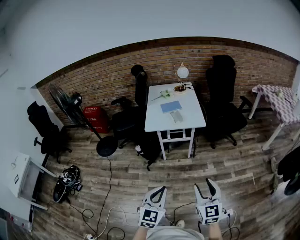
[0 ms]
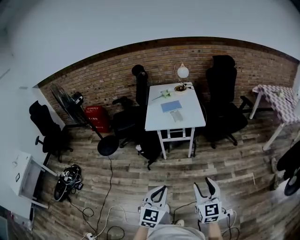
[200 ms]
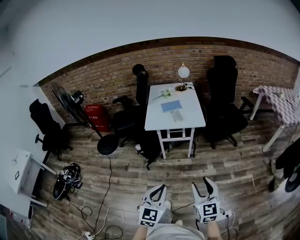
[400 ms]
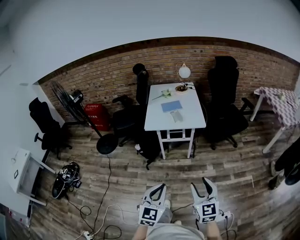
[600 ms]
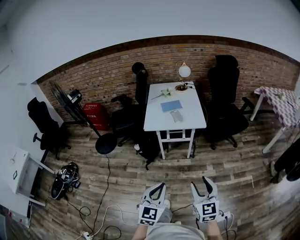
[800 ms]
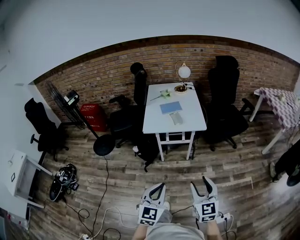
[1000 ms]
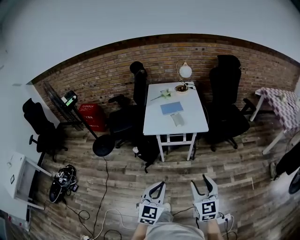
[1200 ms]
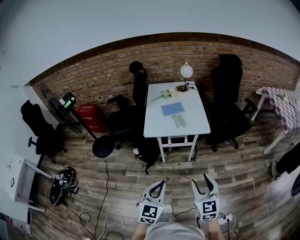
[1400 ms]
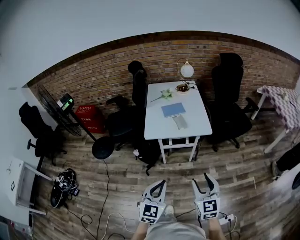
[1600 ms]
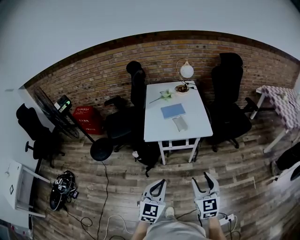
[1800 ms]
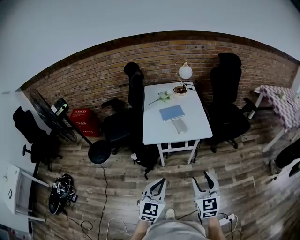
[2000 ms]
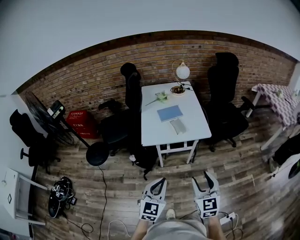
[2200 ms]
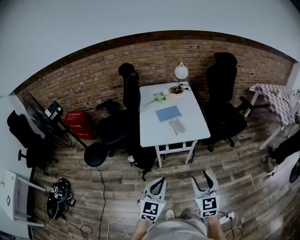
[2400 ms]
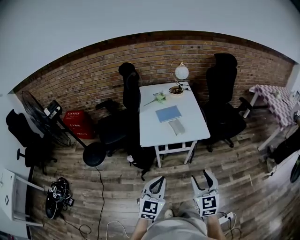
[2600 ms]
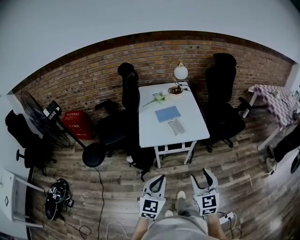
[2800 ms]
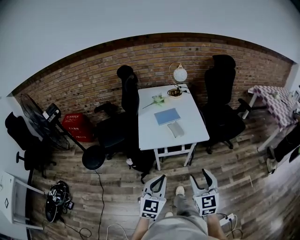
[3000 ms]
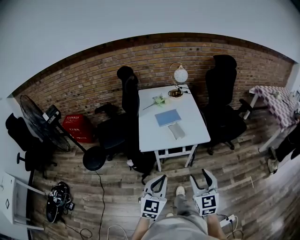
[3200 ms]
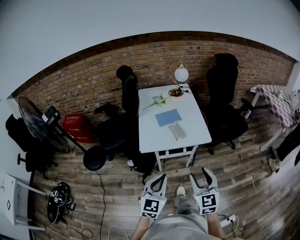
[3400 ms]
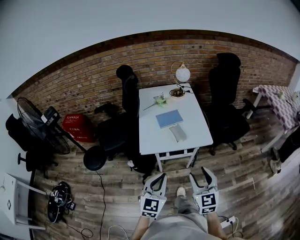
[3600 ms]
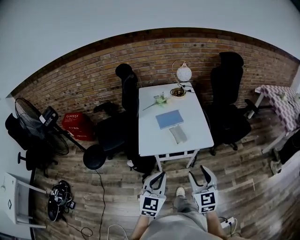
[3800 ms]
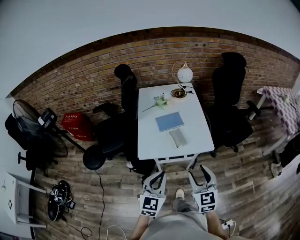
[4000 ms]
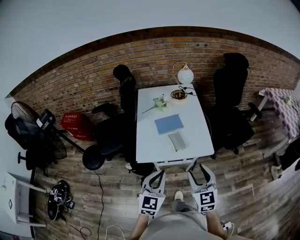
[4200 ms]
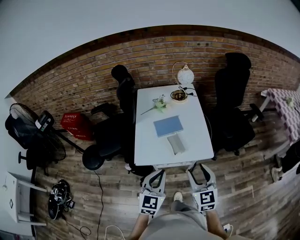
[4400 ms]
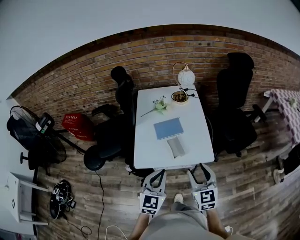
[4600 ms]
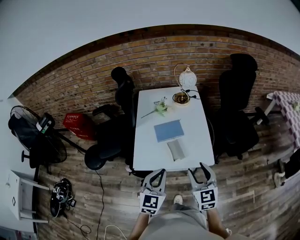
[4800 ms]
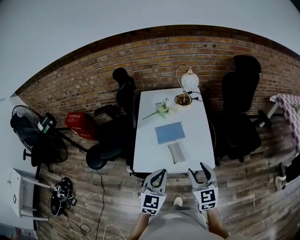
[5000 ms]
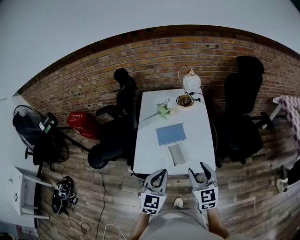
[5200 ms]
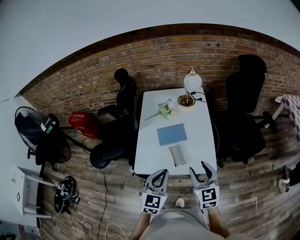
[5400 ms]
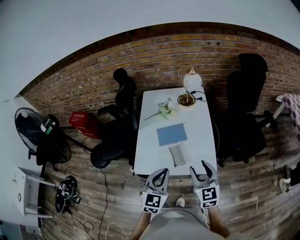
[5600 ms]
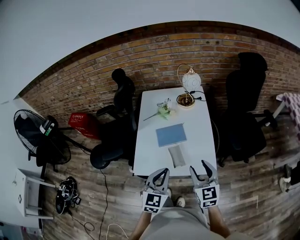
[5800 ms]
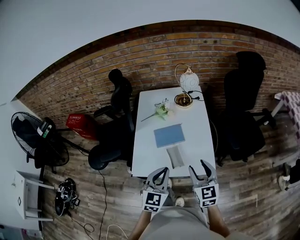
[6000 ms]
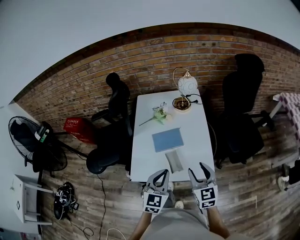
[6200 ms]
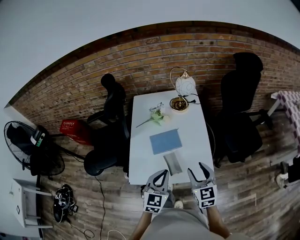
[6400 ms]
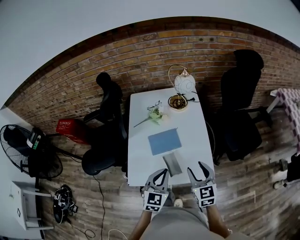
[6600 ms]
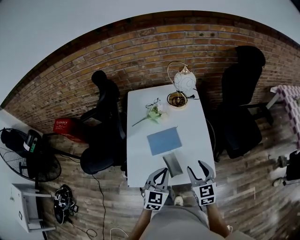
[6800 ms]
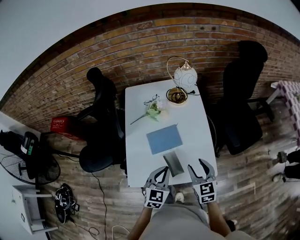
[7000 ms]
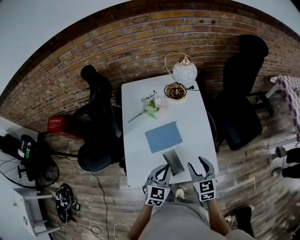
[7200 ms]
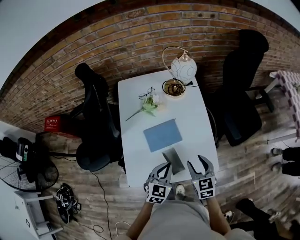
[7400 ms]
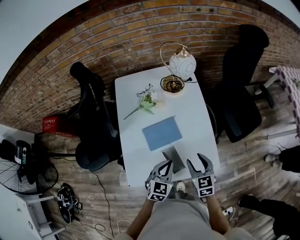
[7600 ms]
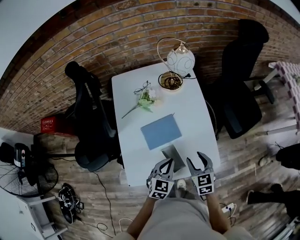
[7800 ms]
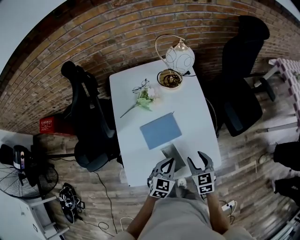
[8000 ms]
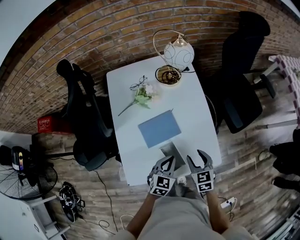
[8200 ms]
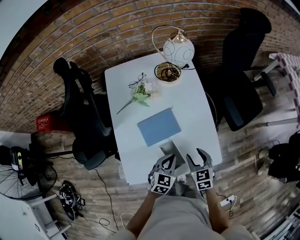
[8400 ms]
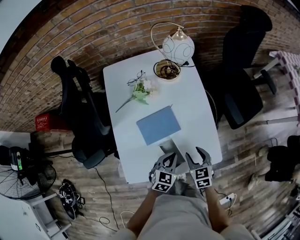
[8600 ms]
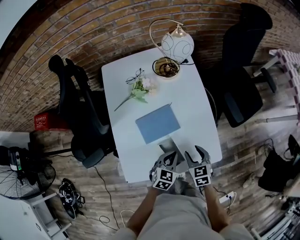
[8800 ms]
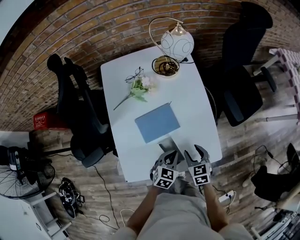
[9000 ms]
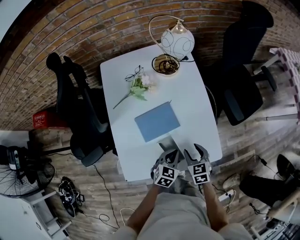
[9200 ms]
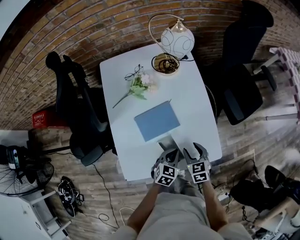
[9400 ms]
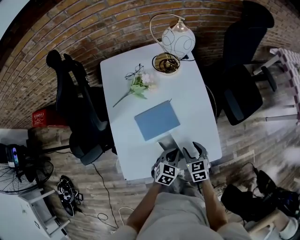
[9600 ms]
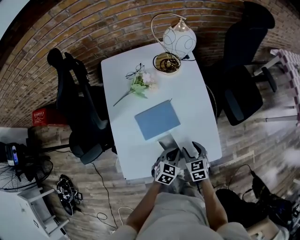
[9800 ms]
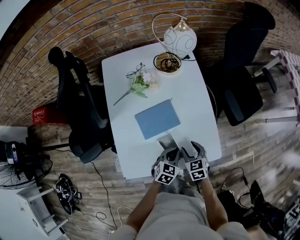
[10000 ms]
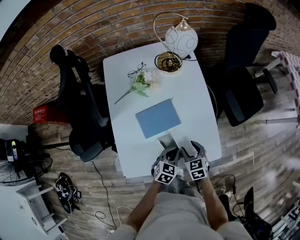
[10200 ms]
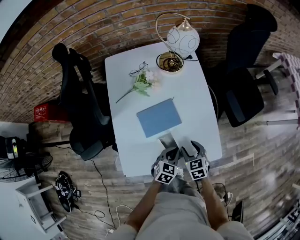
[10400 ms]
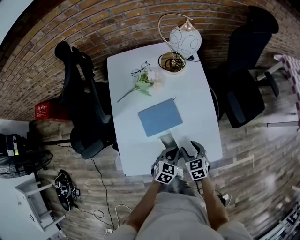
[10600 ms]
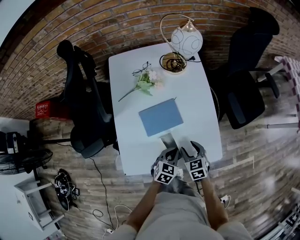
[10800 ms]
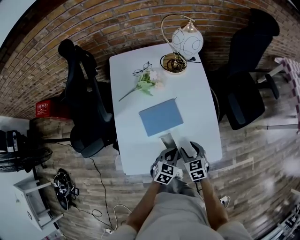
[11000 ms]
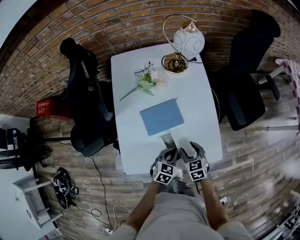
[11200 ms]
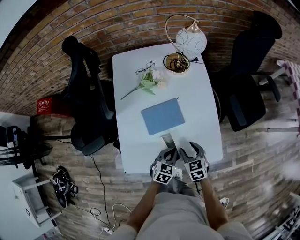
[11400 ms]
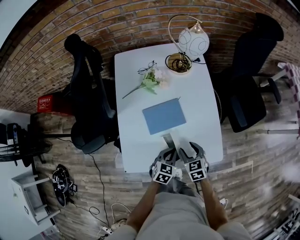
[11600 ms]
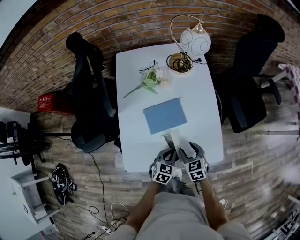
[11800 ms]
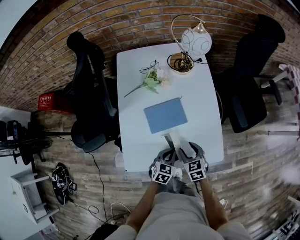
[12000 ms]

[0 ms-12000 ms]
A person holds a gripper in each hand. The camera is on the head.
0 ms to 1600 ms: Both grippers move forward, roughly 20 cm.
1600 ms to 3000 ms: Both grippers travel together forward, roughly 10 cm.
3000 ms to 4400 ms: Both grippers travel together forward, about 20 cm.
4400 ms to 6000 ms: The left gripper travels forward and to the right by roughly 15 cm, while the right gripper goes about 15 cm forward.
6000 ms to 7600 ms: Both grippers move downward and forward, about 20 cm. The right gripper changes its angle by about 20 degrees. Meanwhile the left gripper swivels roughly 20 degrees.
7600 ms to 9000 ms: The two grippers go approximately 10 cm downward.
9000 ms to 12000 ms: The grippers move only a little.

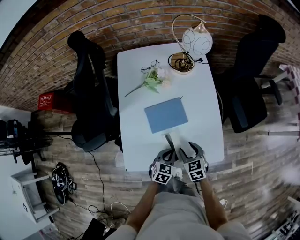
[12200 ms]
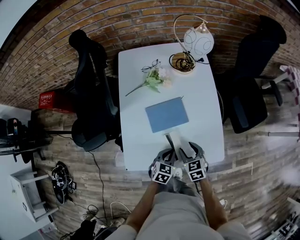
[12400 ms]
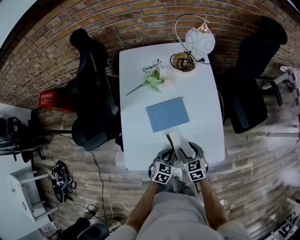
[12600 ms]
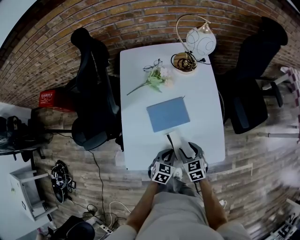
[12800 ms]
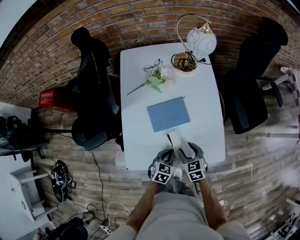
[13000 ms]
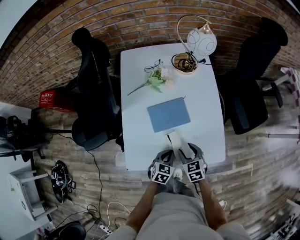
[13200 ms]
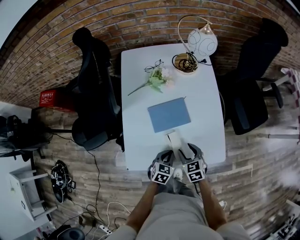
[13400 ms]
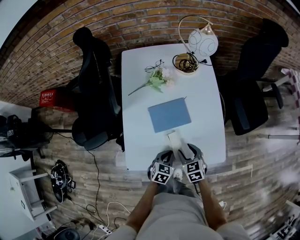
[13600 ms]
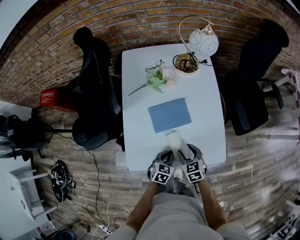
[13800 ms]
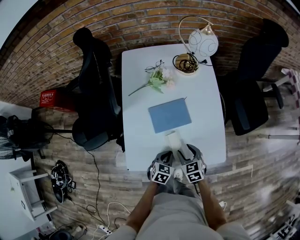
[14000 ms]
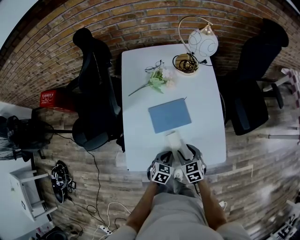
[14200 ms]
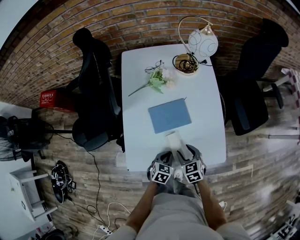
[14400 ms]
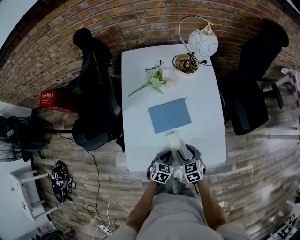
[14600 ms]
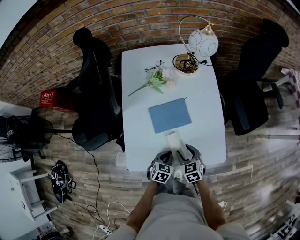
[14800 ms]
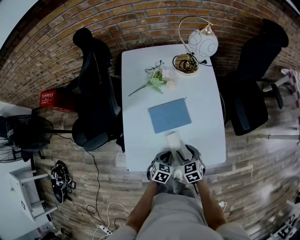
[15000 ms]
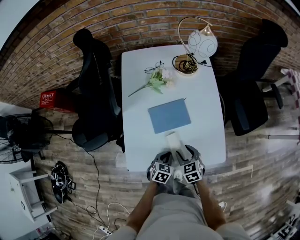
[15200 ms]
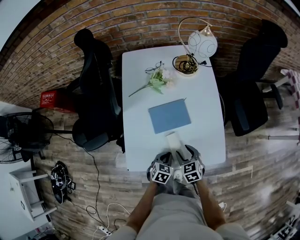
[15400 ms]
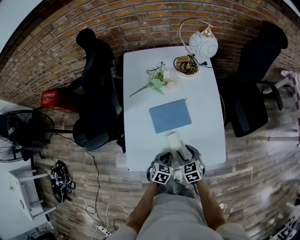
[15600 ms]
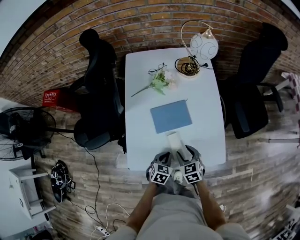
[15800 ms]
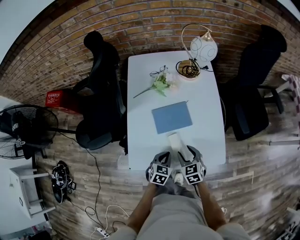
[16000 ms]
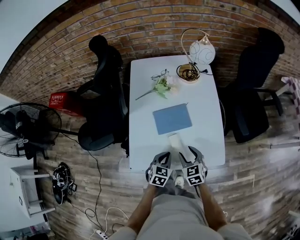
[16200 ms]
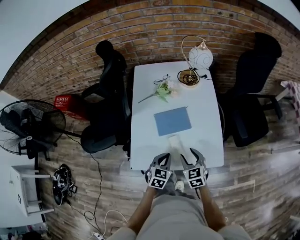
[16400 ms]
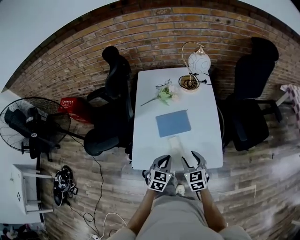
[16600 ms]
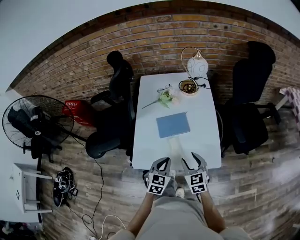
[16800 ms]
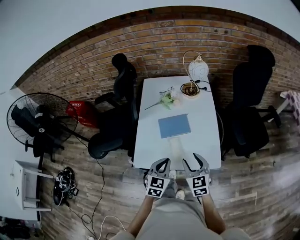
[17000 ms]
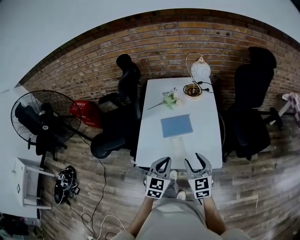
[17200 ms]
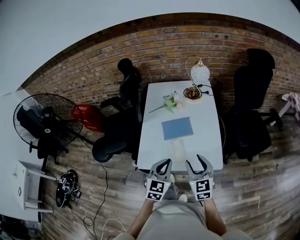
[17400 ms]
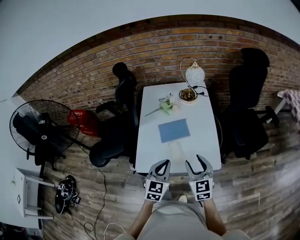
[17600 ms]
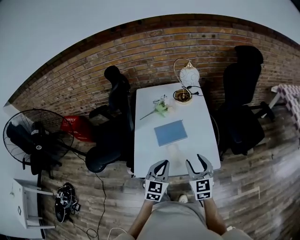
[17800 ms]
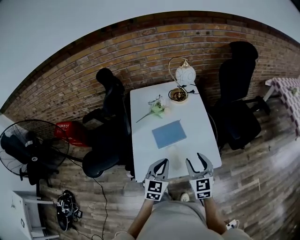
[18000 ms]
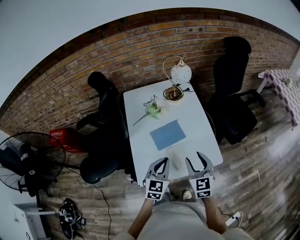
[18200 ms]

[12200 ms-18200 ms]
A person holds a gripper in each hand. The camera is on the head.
12200 ms to 13800 ms: The grippers stay close to where they were, moving slightly.
13800 ms to 15200 ms: Both grippers stay put.
15200 ms to 16600 ms: The two grippers go about 10 cm upward.
16600 ms to 18200 ms: Both grippers move upward, some 10 cm. The right gripper rotates approximately 20 degrees.

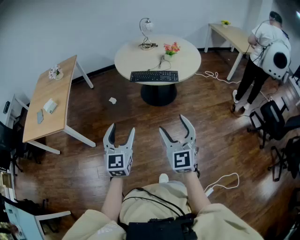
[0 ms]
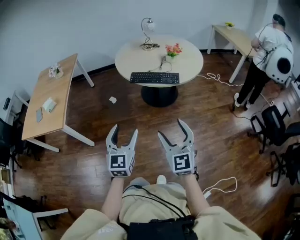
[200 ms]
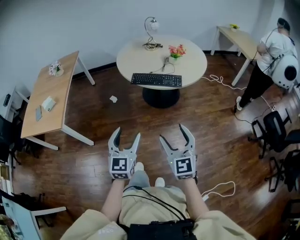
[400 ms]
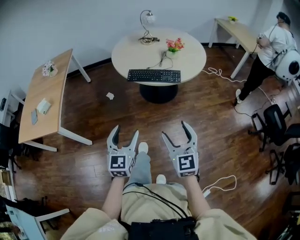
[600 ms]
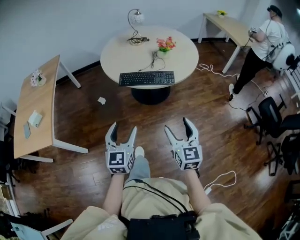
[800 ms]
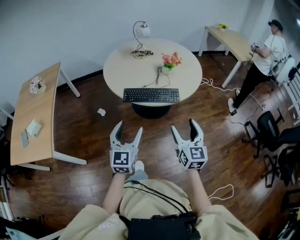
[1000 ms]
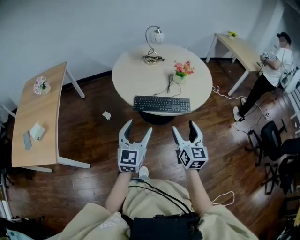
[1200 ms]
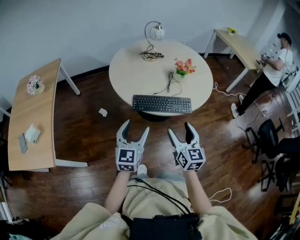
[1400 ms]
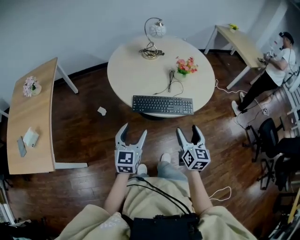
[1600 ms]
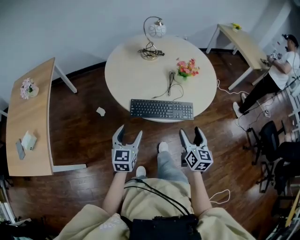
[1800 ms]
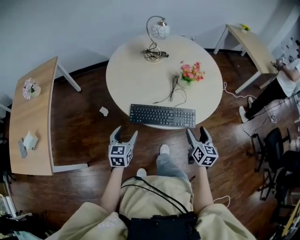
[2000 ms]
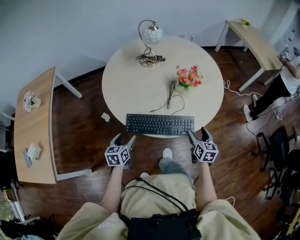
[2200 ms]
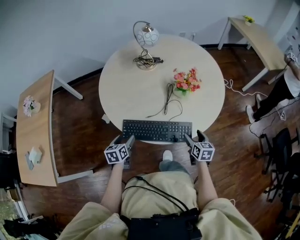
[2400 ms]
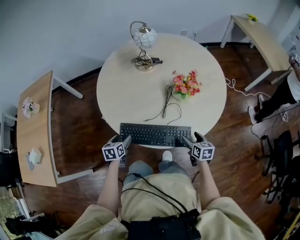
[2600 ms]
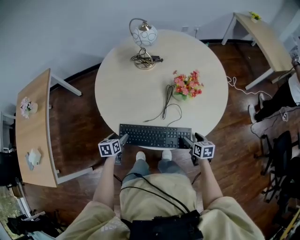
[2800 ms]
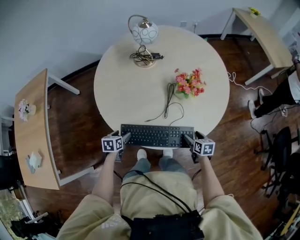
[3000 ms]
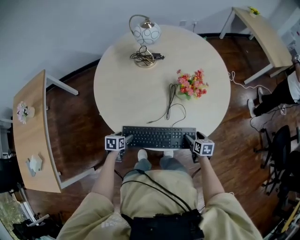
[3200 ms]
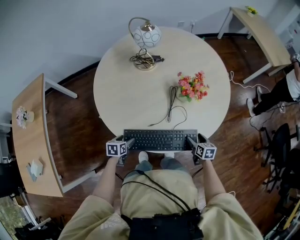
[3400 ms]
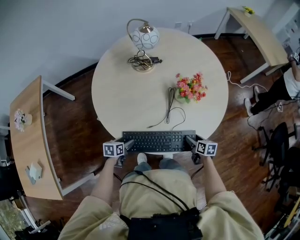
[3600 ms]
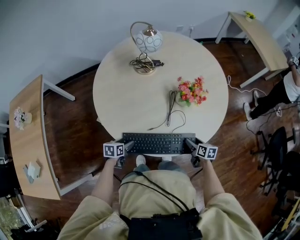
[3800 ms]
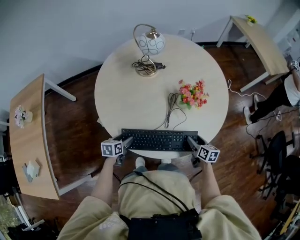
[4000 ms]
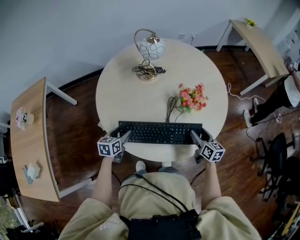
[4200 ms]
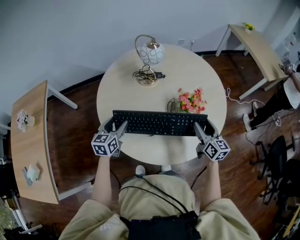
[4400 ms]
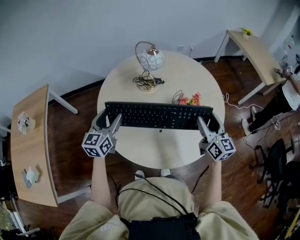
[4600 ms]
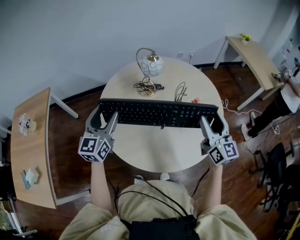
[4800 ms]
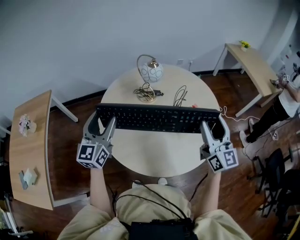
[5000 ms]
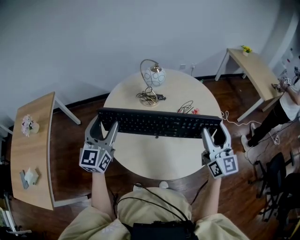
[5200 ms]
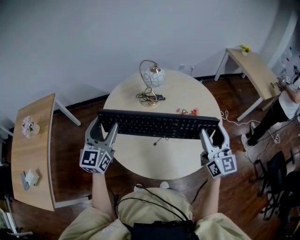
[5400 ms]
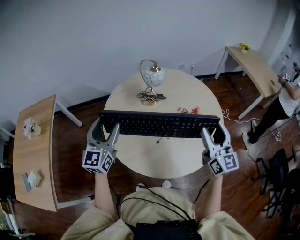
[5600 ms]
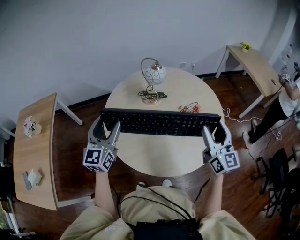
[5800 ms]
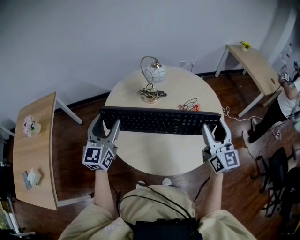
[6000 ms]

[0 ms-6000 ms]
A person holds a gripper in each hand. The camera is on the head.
0 ms to 1600 ms: The grippers both shift forward by roughly 40 cm. The right gripper turns by some 40 degrees.
1600 ms to 3000 ms: The right gripper heads downward, forward and to the right, covering some 40 cm, and points its fingers about 30 degrees further downward. Meanwhile the left gripper heads downward and forward, covering some 35 cm, and points its fingers roughly 40 degrees further downward.
3000 ms to 4400 ms: Both grippers move upward and forward, roughly 25 cm. The right gripper tilts its fingers some 30 degrees upward. The left gripper tips its fingers upward by about 30 degrees.
4400 ms to 6000 ms: Both grippers travel together upward, roughly 20 cm. The right gripper turns by some 30 degrees, while the left gripper rotates approximately 30 degrees.
